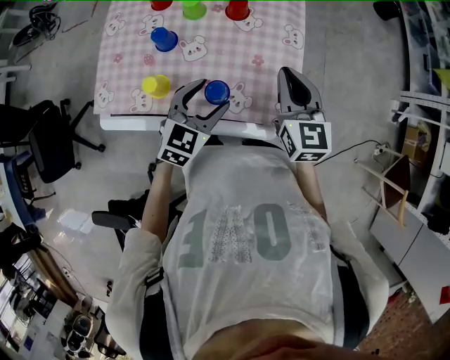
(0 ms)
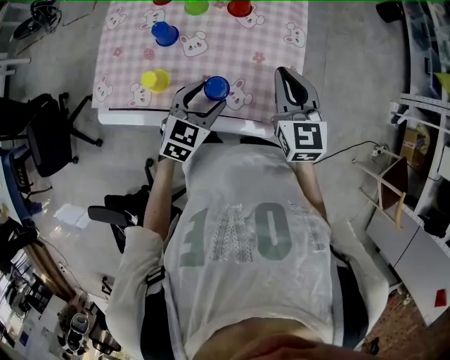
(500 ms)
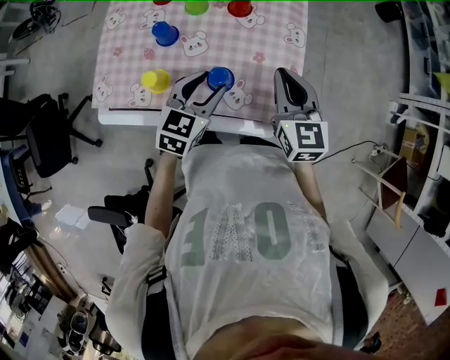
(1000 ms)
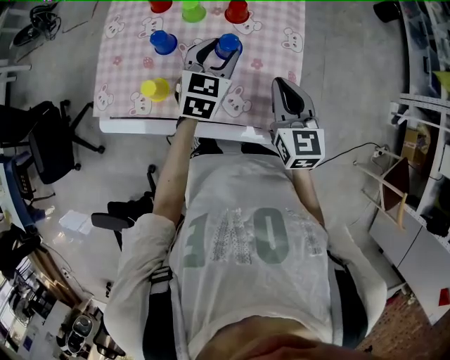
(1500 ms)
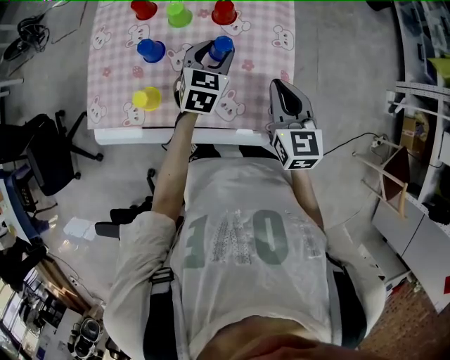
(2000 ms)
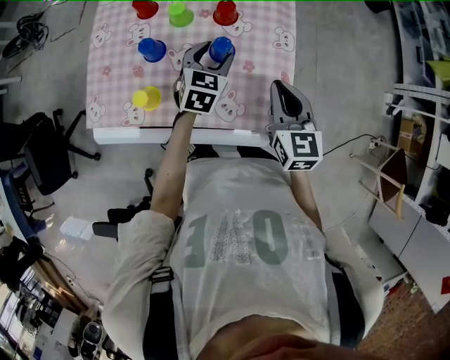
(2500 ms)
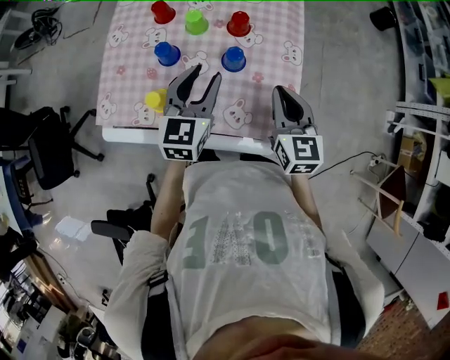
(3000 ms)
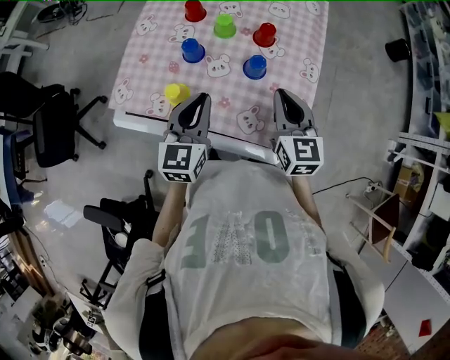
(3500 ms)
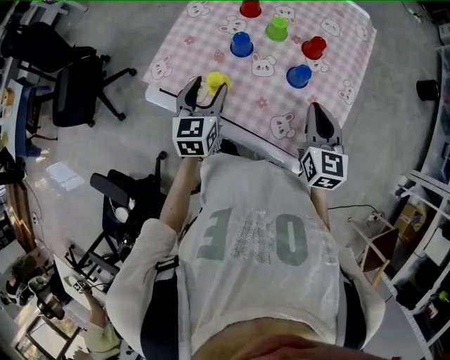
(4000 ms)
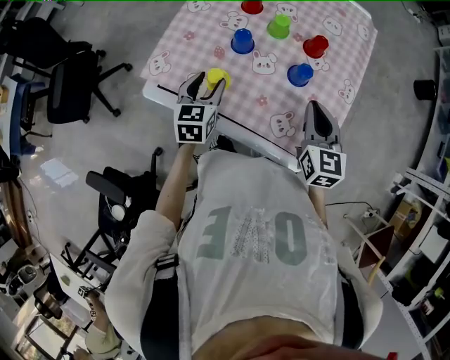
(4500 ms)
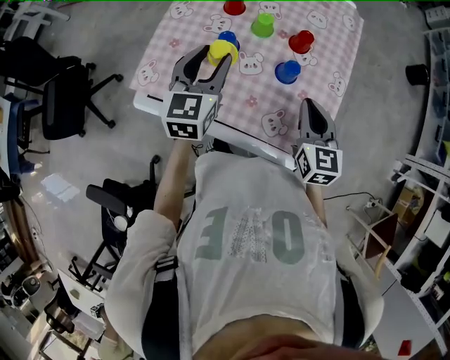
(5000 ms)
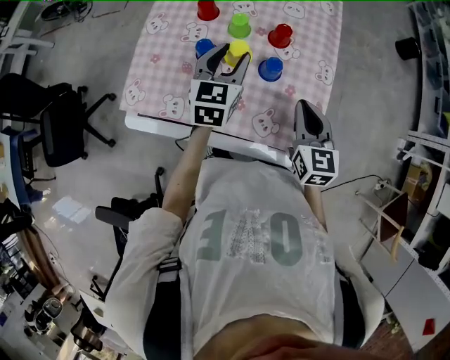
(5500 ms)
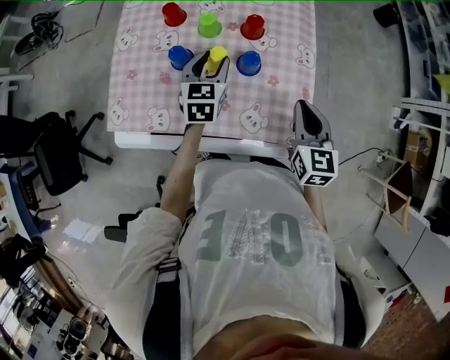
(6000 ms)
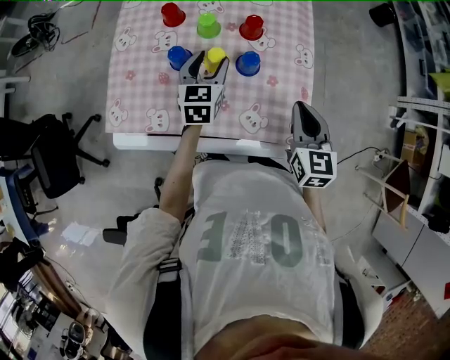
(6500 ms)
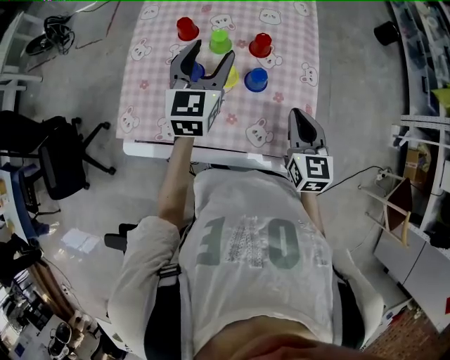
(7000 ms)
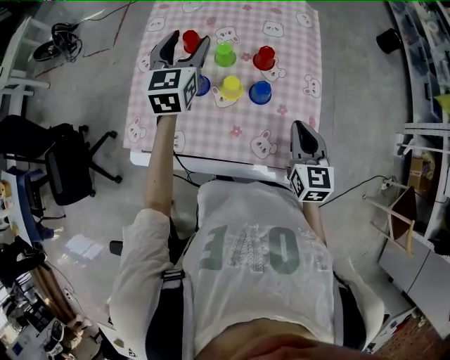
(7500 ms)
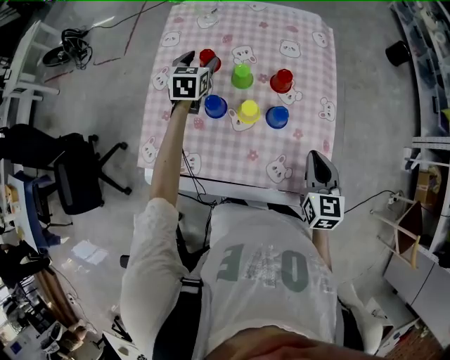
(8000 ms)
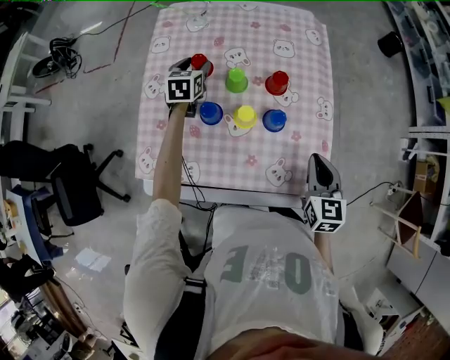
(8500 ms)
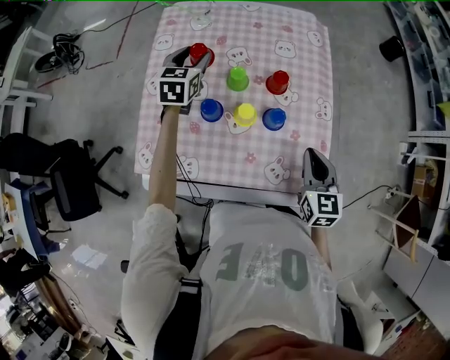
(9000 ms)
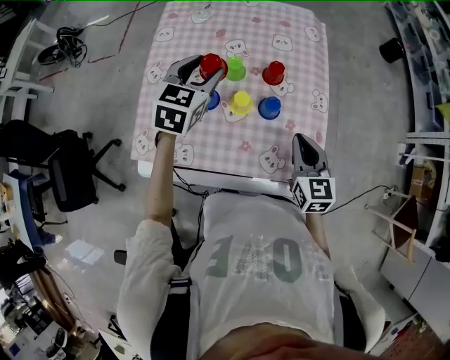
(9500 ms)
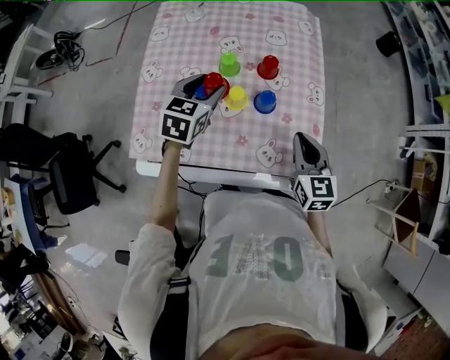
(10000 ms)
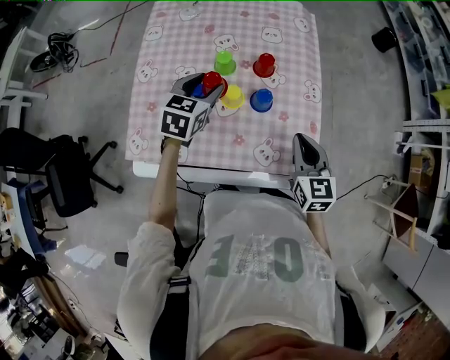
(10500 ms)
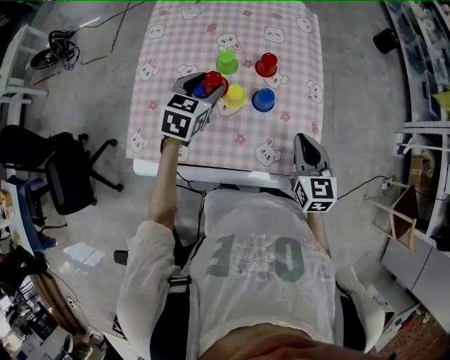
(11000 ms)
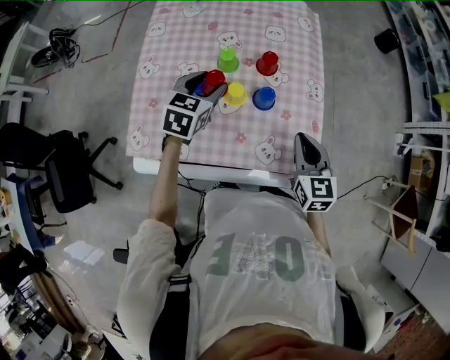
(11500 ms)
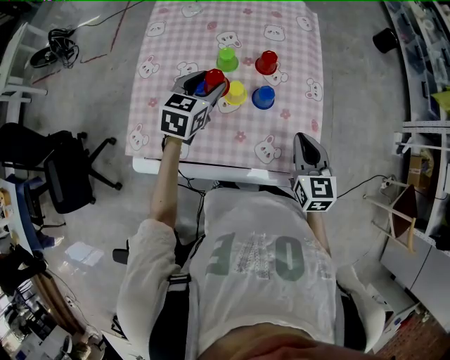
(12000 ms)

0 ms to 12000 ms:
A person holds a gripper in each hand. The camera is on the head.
0 ms to 2000 ms: The left gripper moves forward, about 15 cm.
2000 ms to 4000 ms: The right gripper shifts some 10 cm to the left. The left gripper goes approximately 25 cm to the left and backward, turns by approximately 40 degrees, and closes, then opens again.
4000 ms to 6000 ms: The right gripper is displaced to the right by some 5 cm, while the left gripper moves to the right and forward, roughly 20 cm, and changes its angle by about 20 degrees.
6000 ms to 8000 ms: The left gripper heads forward and to the left, covering approximately 20 cm.
8000 ms to 10000 ms: The left gripper goes approximately 15 cm backward and to the right.
10000 ms to 12000 ms: The grippers make only small movements.

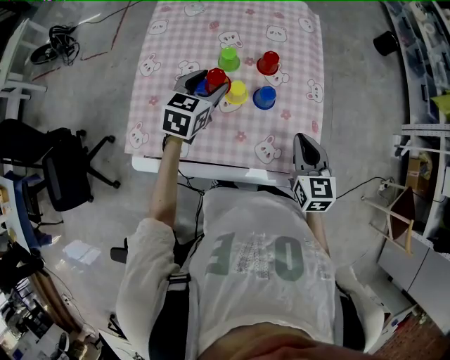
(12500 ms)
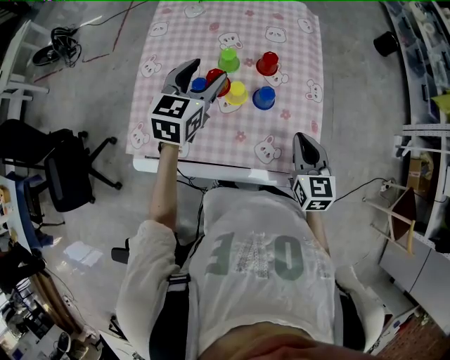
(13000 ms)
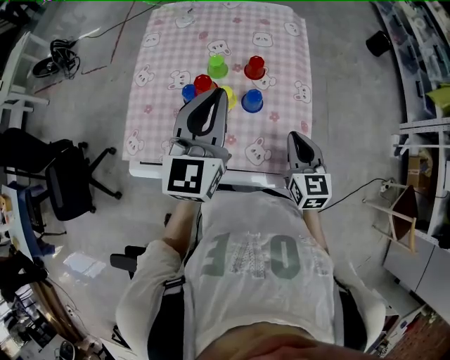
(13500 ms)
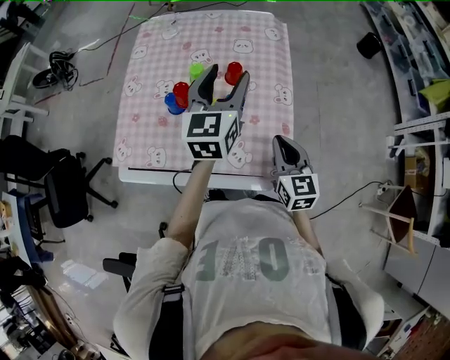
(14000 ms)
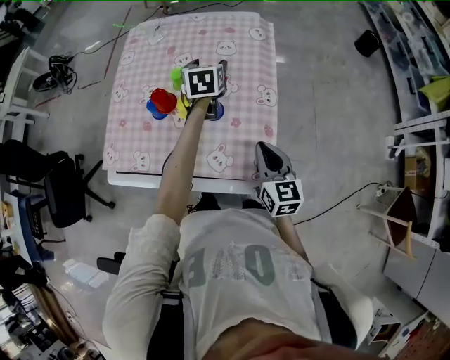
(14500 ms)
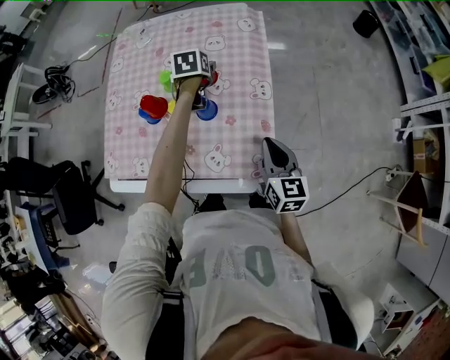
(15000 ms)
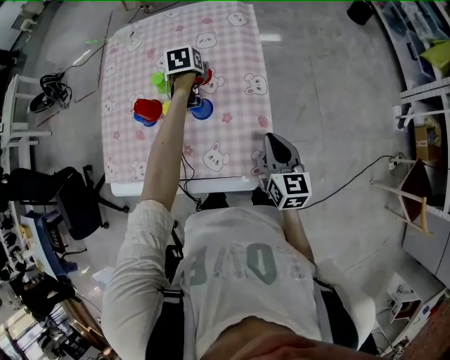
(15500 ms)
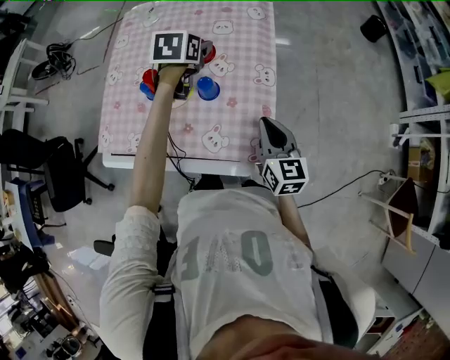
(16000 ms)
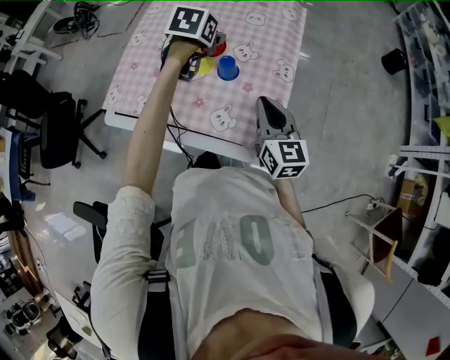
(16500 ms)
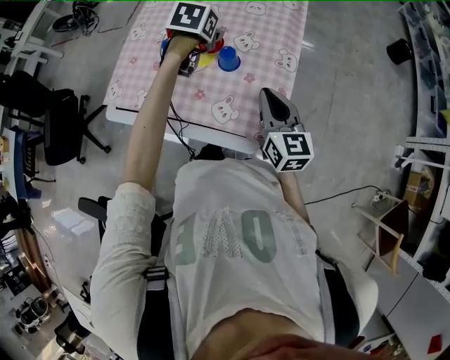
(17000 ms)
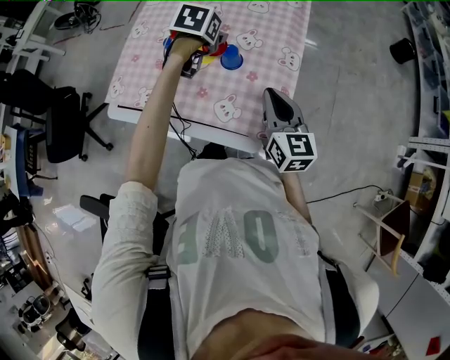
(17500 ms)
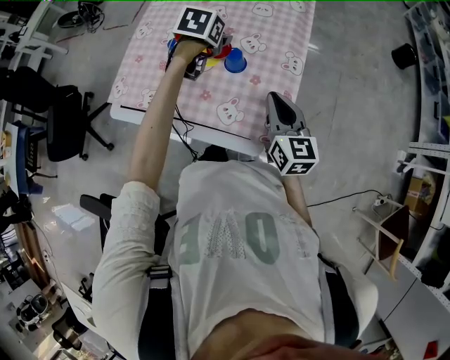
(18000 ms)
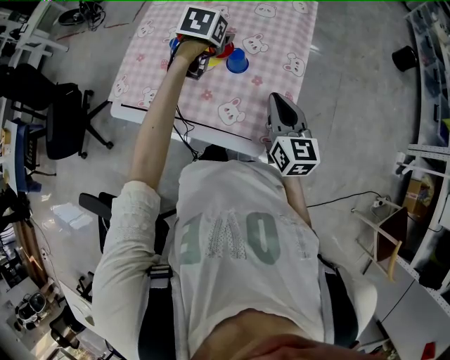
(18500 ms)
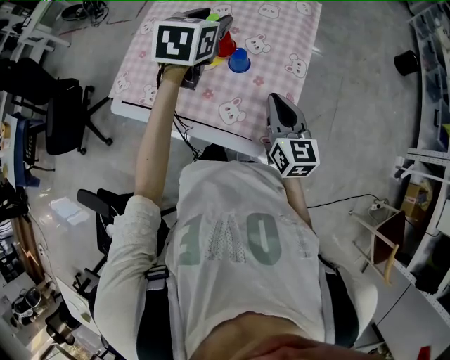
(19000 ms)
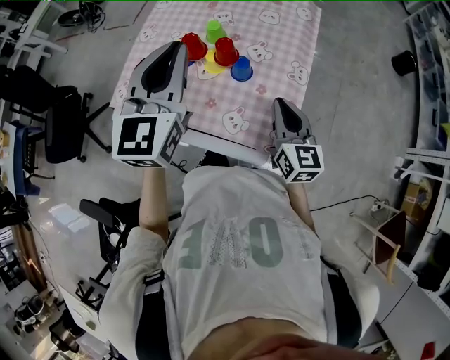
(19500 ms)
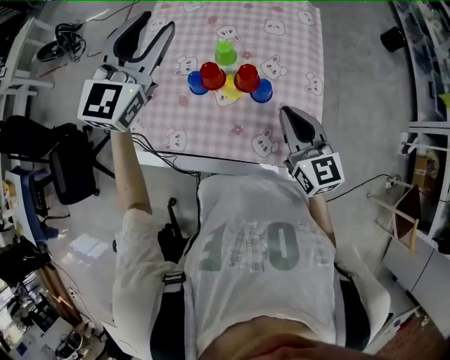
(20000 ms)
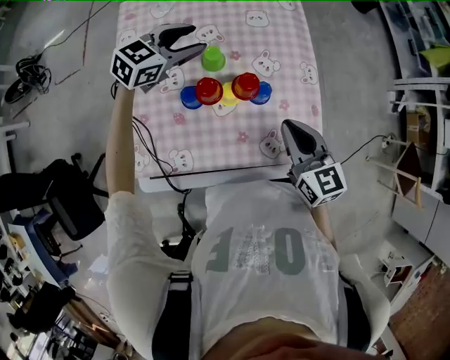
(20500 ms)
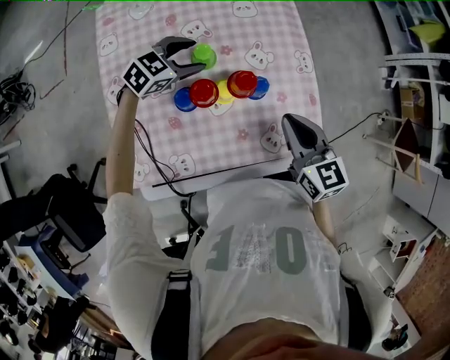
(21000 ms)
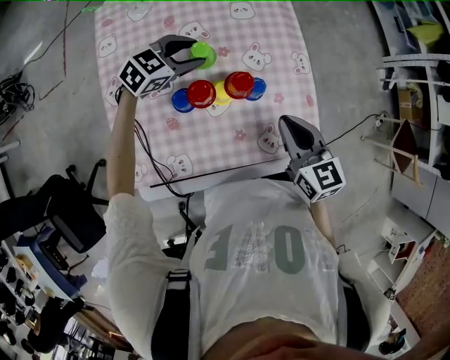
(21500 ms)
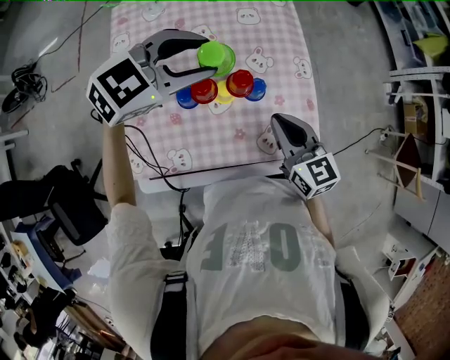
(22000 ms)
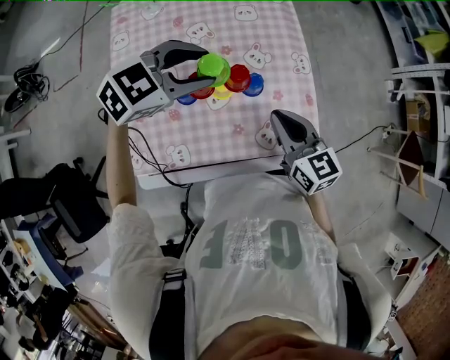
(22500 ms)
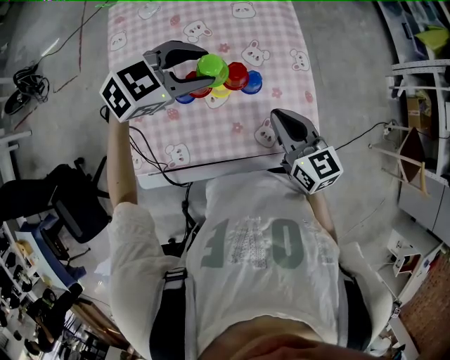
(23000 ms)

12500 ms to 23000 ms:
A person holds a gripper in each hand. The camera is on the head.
12500 ms to 14500 ms: The left gripper heads to the right and forward, covering some 20 cm, turns by some 20 degrees, and closes, then reopens; the right gripper travels to the right by approximately 5 cm.
14500 ms to 16500 ms: The left gripper shifts roughly 10 cm backward and to the left, and goes downward and returns, about 10 cm each way.
16500 ms to 19000 ms: The left gripper goes approximately 10 cm upward, and changes its angle by about 20 degrees.
19000 ms to 21000 ms: The right gripper ends up approximately 10 cm from where it was, and changes its angle by some 20 degrees. The left gripper shifts some 20 cm downward, changes its angle by about 70 degrees, and closes and opens again.
21000 ms to 23000 ms: The left gripper shifts roughly 20 cm upward, backward and to the right.

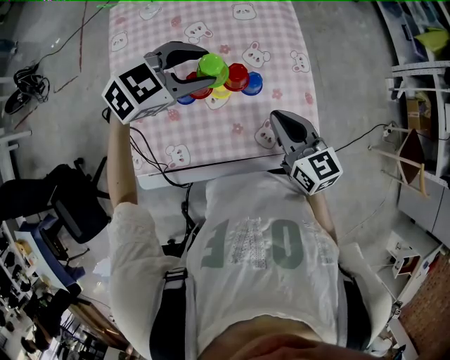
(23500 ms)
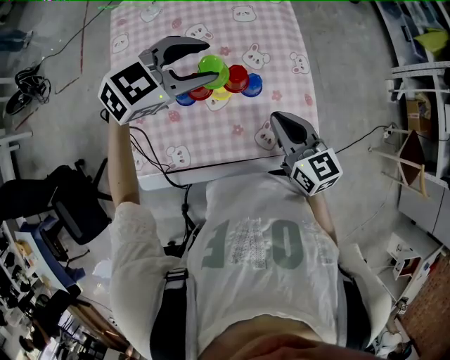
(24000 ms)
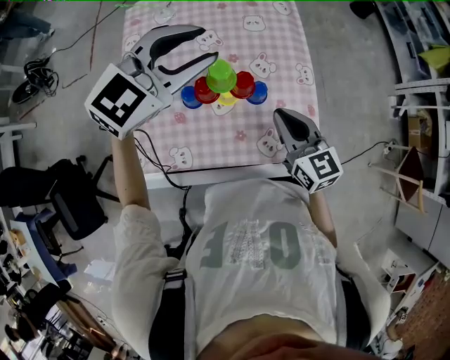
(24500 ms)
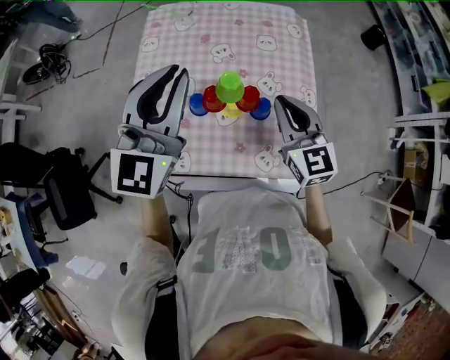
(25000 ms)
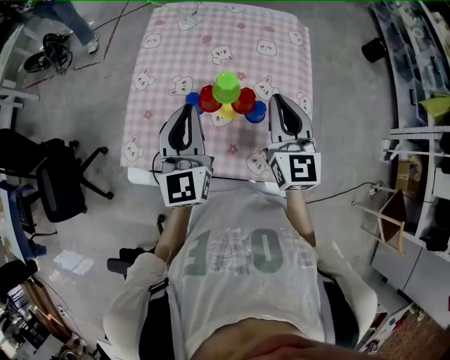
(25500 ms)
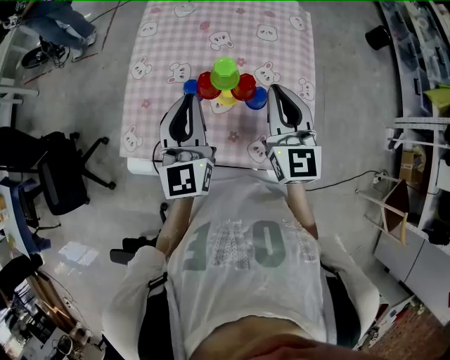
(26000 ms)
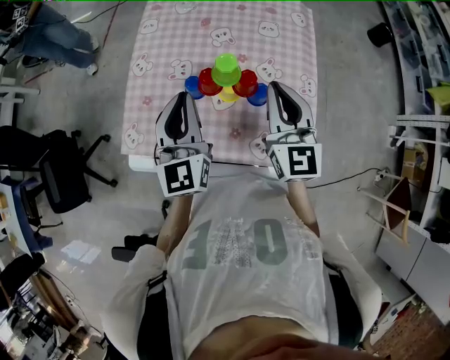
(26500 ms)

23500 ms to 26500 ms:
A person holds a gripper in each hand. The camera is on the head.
23500 ms to 25000 ms: The left gripper is displaced upward by approximately 15 cm, tips its fingers upward by about 40 degrees, and closes up. Meanwhile the right gripper changes place by approximately 10 cm, and swivels some 20 degrees.
25000 ms to 26500 ms: The left gripper heads downward, covering about 15 cm, and rotates approximately 30 degrees.

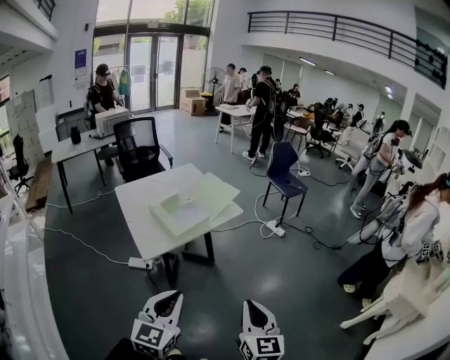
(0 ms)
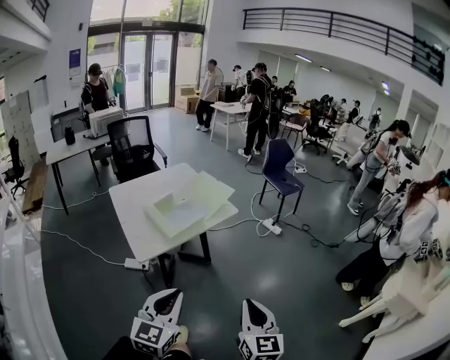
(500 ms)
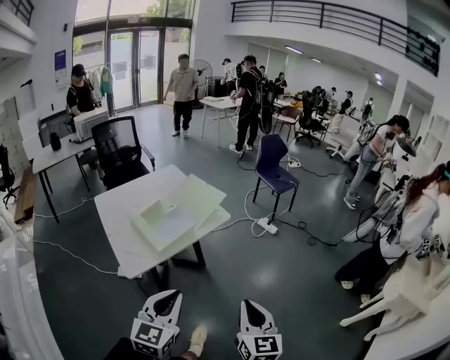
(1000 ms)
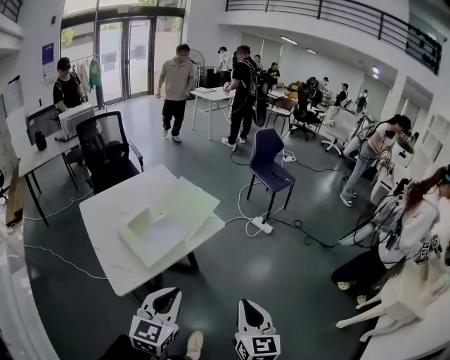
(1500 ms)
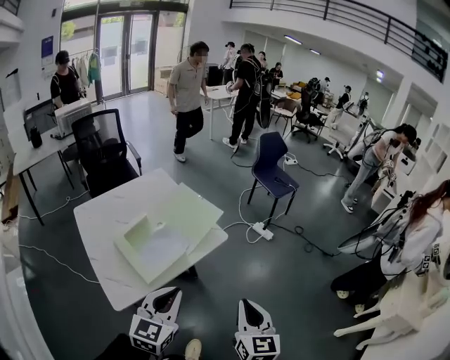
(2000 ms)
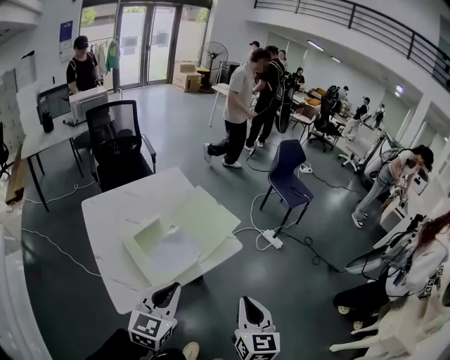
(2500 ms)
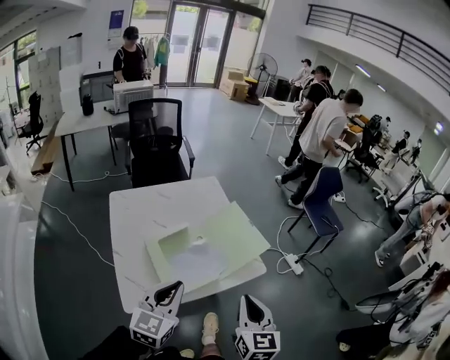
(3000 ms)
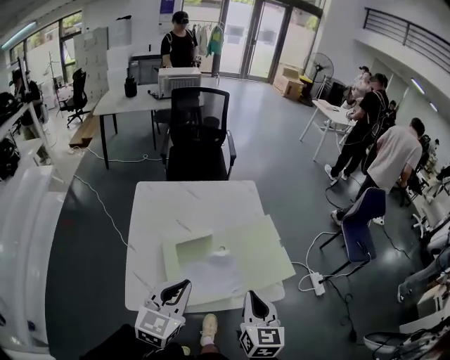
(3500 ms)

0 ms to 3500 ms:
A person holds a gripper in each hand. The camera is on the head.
0 ms to 2000 ms: The two grippers go some 40 cm forward.
2000 ms to 3500 ms: The right gripper changes place by roughly 35 cm, and changes its angle by some 30 degrees, while the left gripper shifts by roughly 30 cm, and changes its angle by roughly 30 degrees.